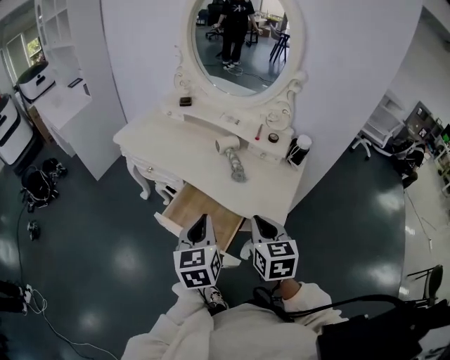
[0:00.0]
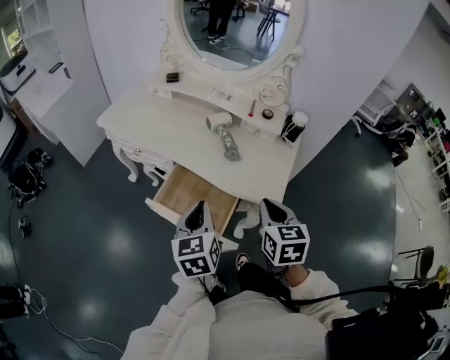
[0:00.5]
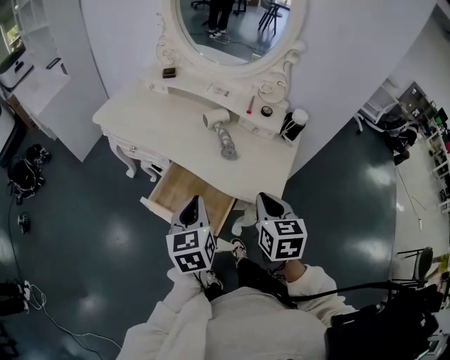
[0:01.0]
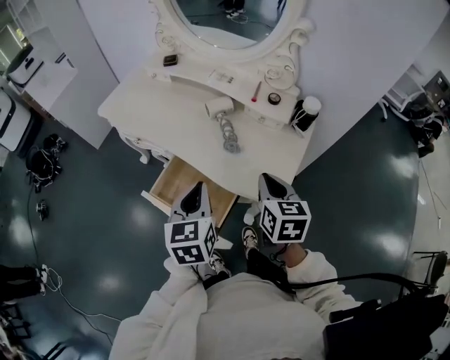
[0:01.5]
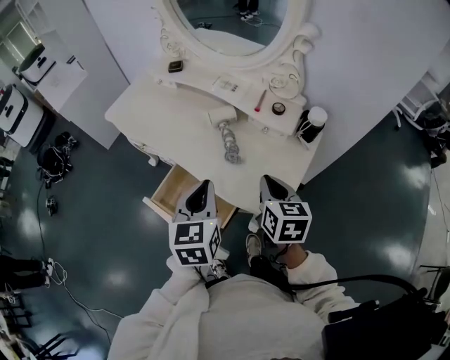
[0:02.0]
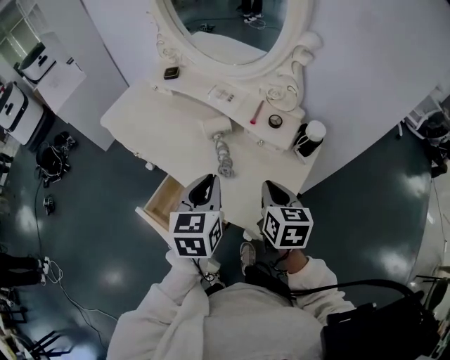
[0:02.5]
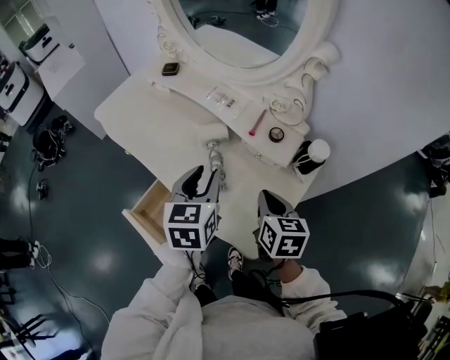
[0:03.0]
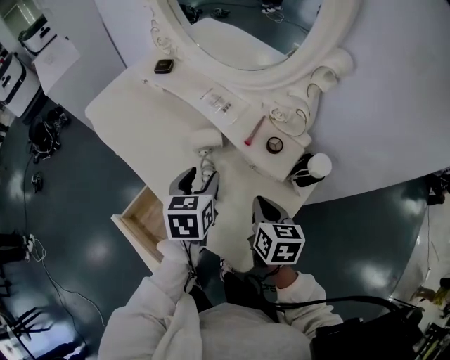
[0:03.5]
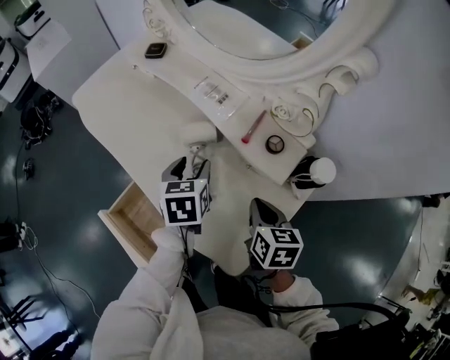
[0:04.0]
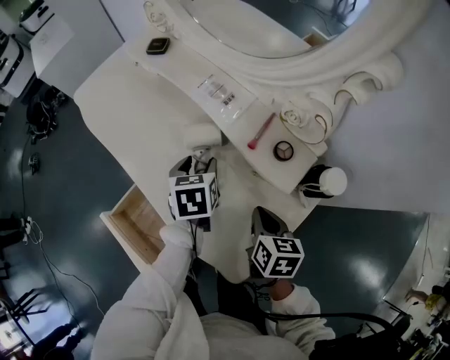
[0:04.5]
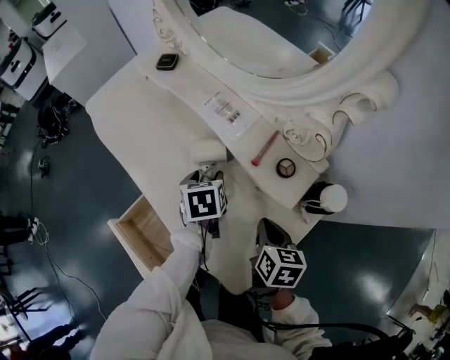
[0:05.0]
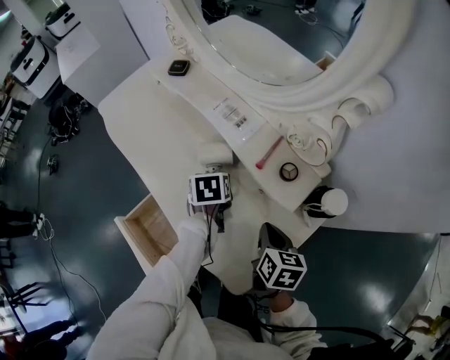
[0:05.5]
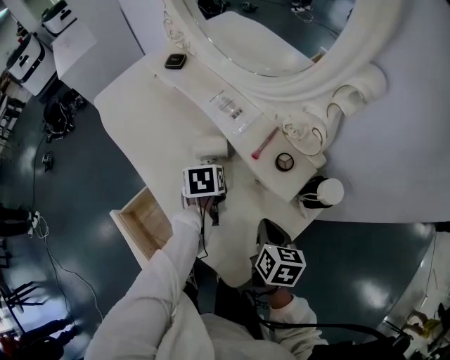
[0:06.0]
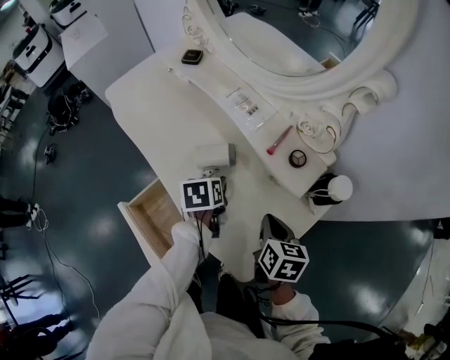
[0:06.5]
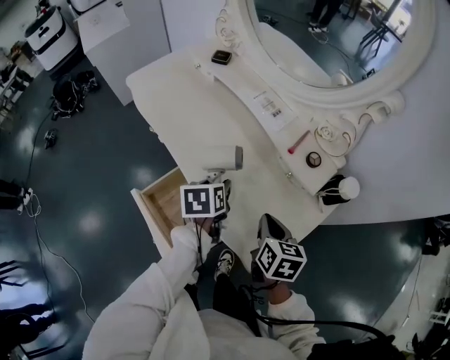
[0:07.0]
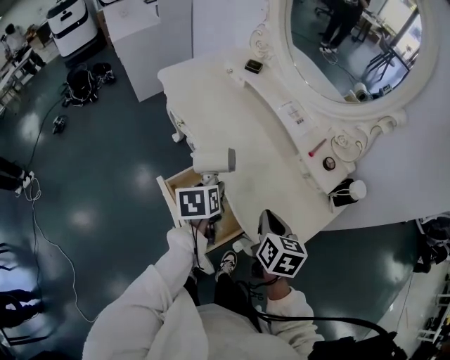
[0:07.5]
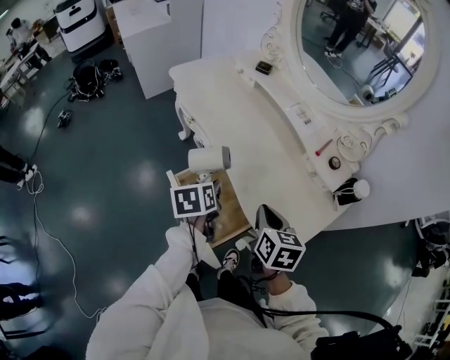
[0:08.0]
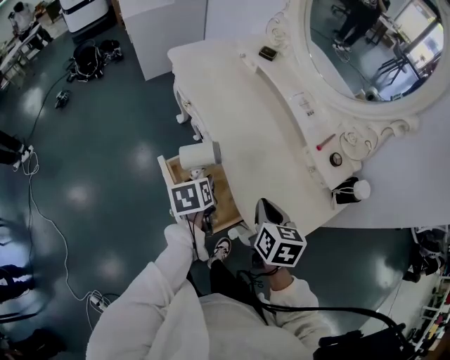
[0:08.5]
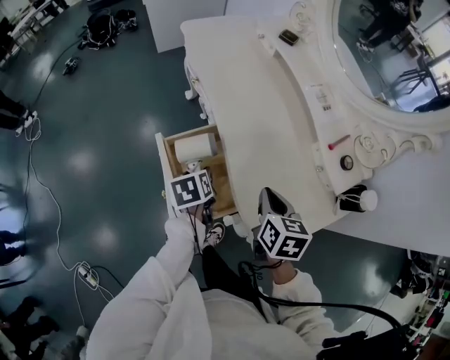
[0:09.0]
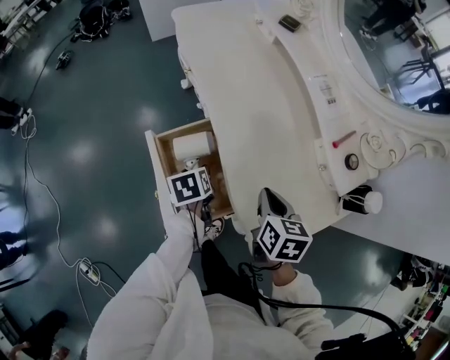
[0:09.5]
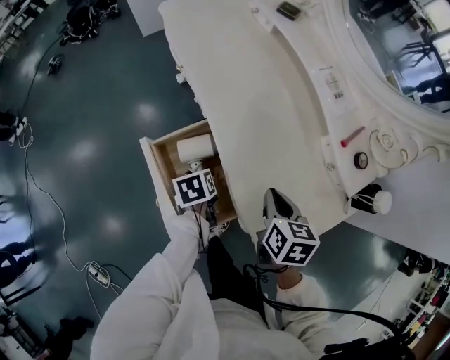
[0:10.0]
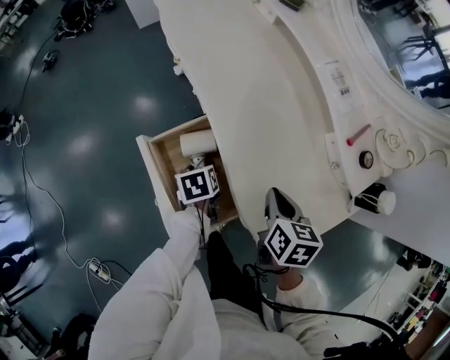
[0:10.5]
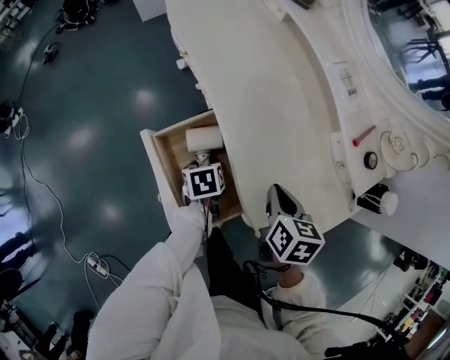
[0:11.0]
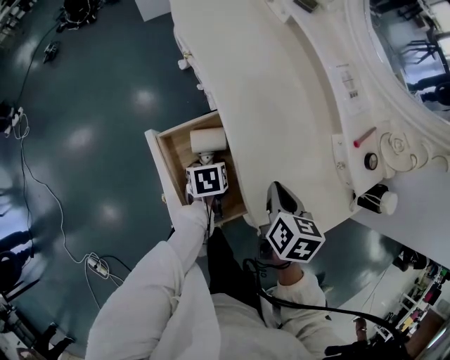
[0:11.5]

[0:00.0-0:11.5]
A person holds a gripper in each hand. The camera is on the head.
0:00.0 to 0:02.0: Both grippers travel together forward and to the right, approximately 15 cm.
0:02.0 to 0:04.0: The left gripper shifts approximately 25 cm forward and downward, swivels roughly 20 degrees, and opens. Meanwhile the right gripper travels forward, downward and to the right by about 20 cm.
0:04.0 to 0:06.0: The left gripper travels downward by roughly 5 cm.
0:06.0 to 0:07.5: The left gripper travels backward, to the left and upward by roughly 25 cm, while the right gripper heads to the left, backward and upward, covering roughly 20 cm.
0:07.5 to 0:09.5: The left gripper goes about 15 cm downward, and changes its angle by roughly 30 degrees; the right gripper travels downward by approximately 5 cm.
0:09.5 to 0:11.5: The left gripper shifts some 5 cm downward.

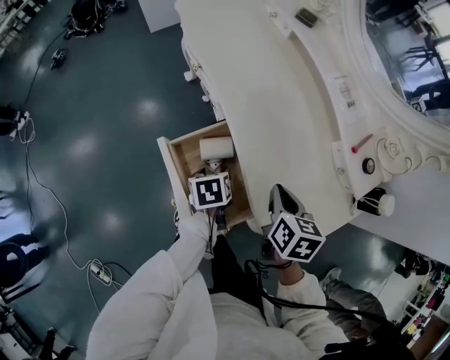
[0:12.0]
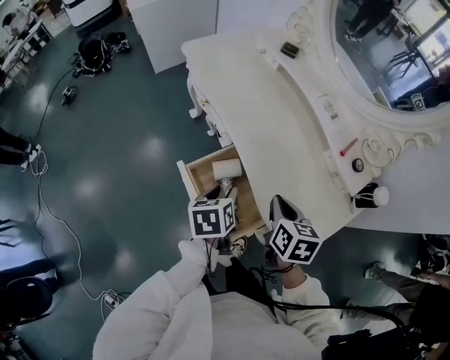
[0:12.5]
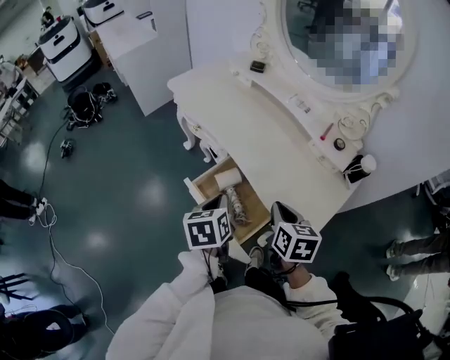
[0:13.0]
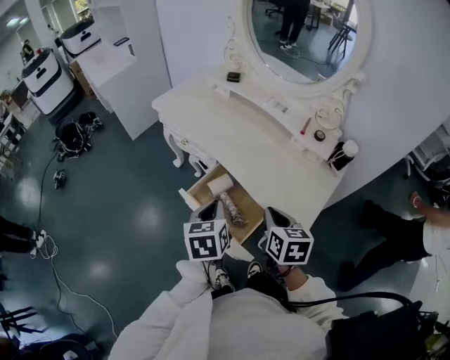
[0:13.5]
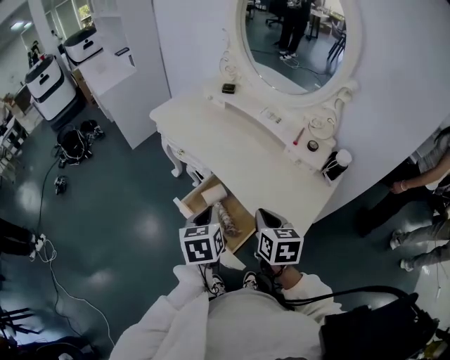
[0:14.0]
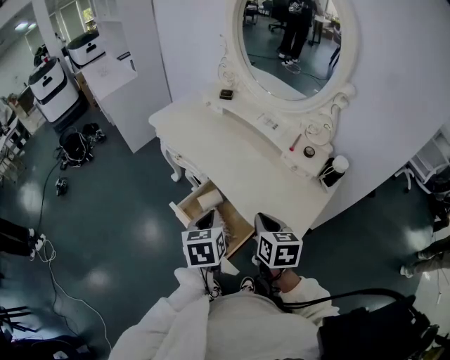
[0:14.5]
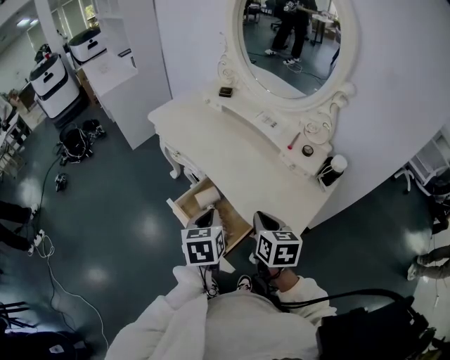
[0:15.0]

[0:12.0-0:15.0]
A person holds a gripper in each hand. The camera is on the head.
0:12.0 to 0:13.5: The right gripper travels backward and upward by some 15 cm; the left gripper heads upward, covering approximately 25 cm, rotates roughly 40 degrees, and closes up.
0:13.5 to 0:15.0: The left gripper is displaced to the right by some 5 cm.

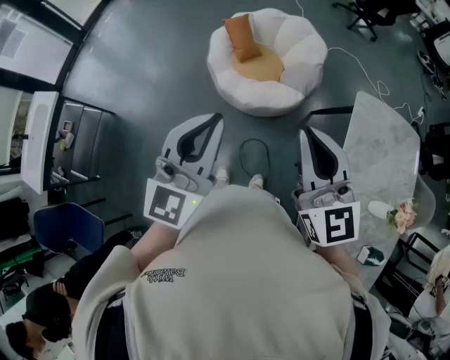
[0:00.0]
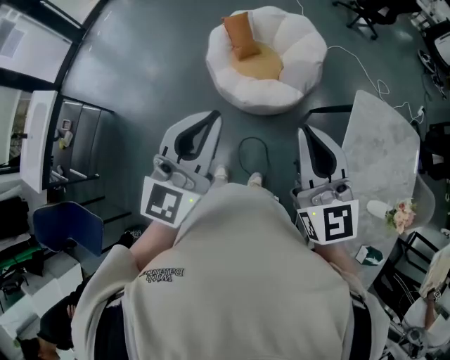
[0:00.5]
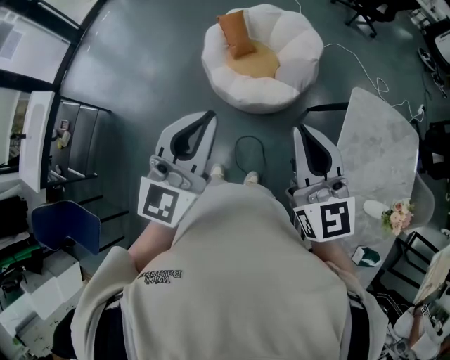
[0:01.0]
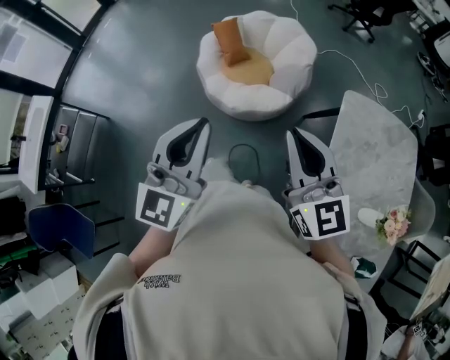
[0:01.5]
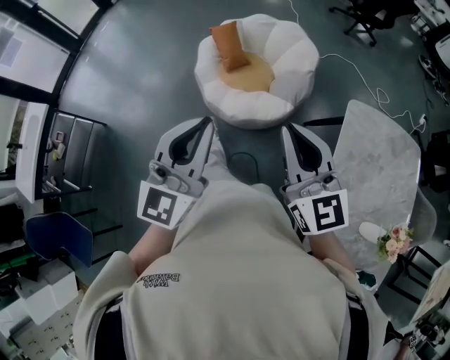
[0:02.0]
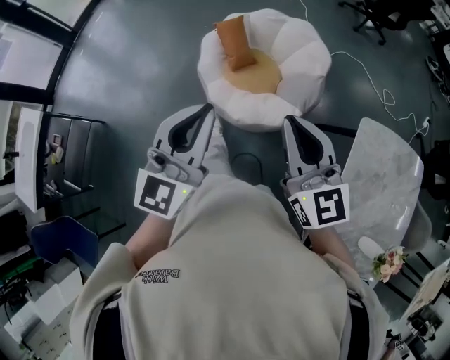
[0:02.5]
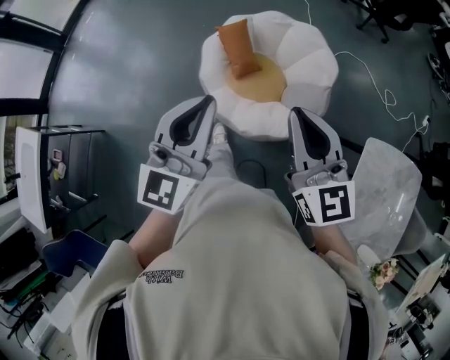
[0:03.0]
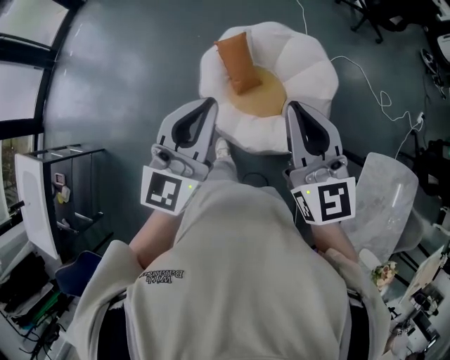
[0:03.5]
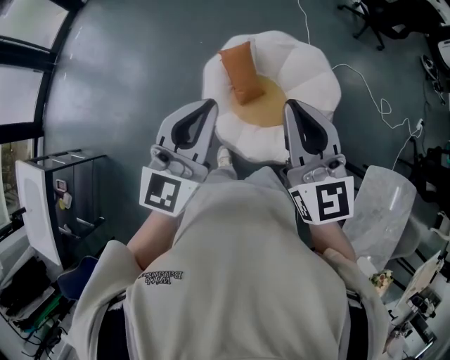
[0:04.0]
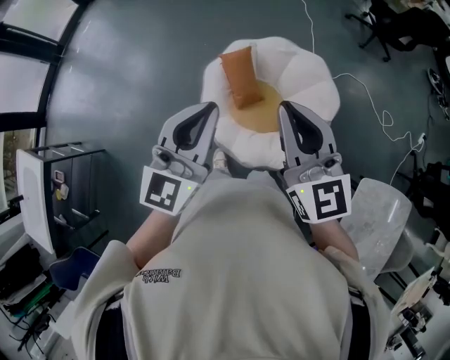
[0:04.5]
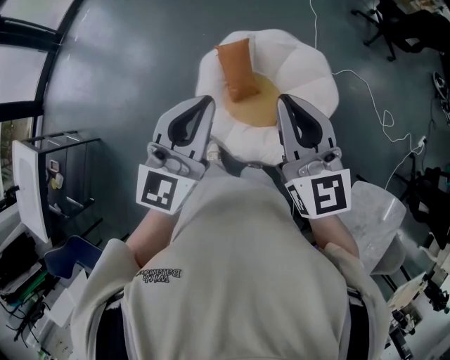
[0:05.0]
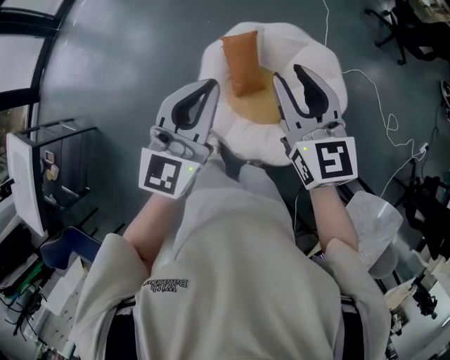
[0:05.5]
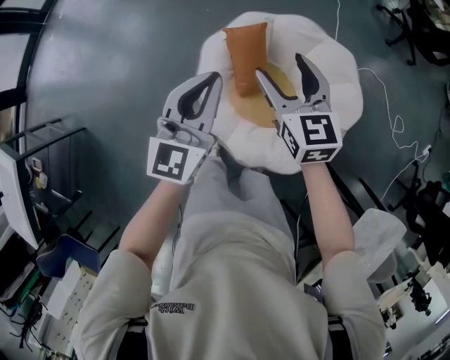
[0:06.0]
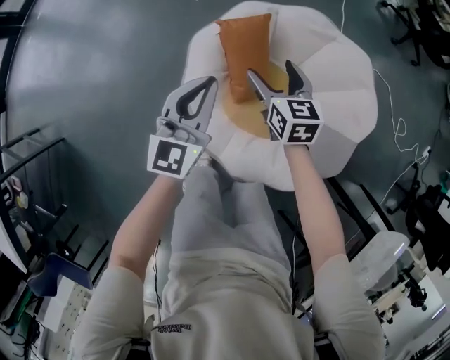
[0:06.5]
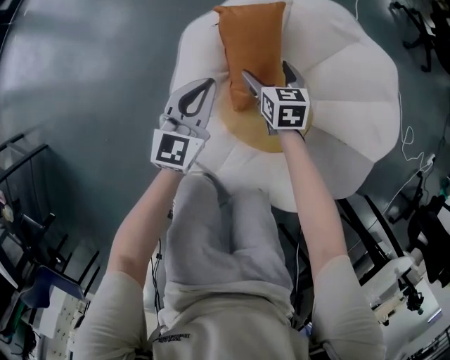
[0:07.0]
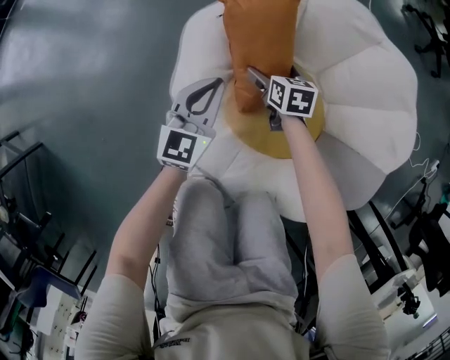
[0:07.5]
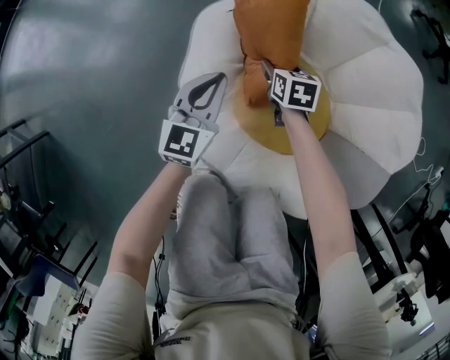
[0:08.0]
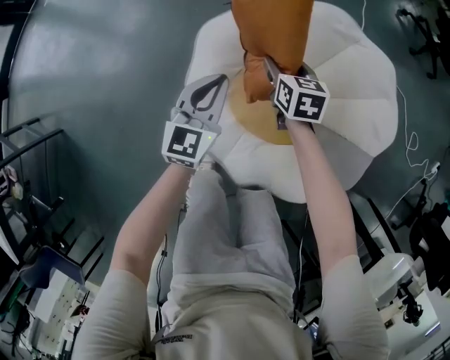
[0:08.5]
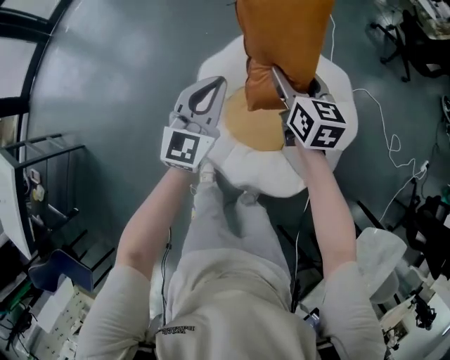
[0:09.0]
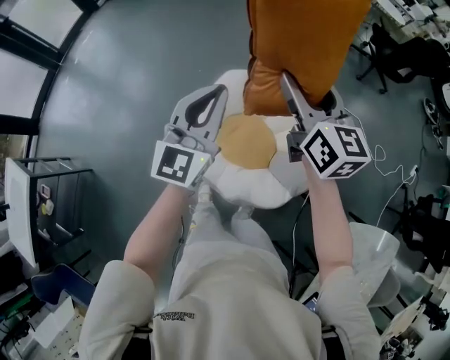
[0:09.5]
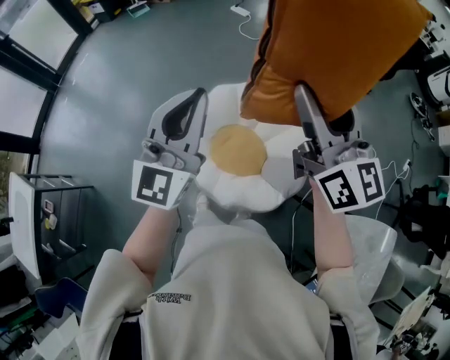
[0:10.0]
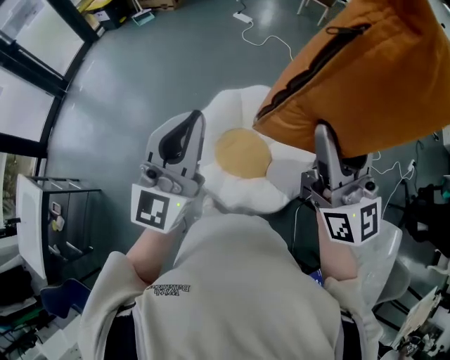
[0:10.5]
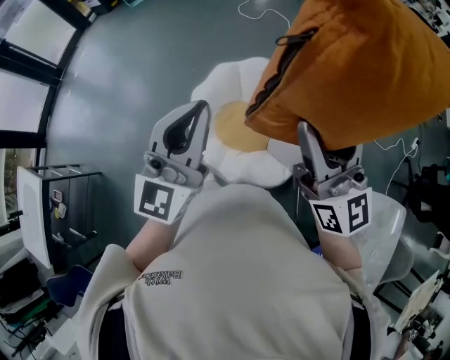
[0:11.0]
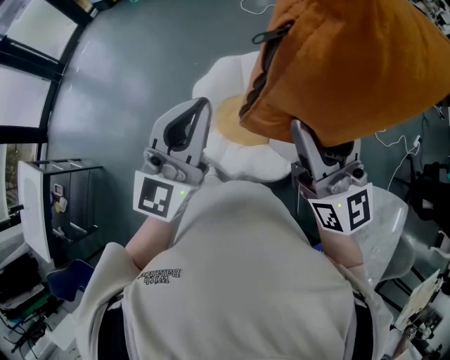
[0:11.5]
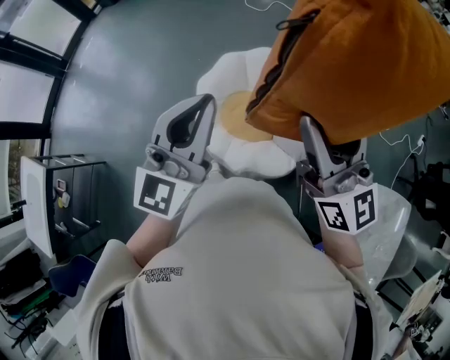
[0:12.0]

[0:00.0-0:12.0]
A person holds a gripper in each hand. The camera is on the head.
0:00.0 to 0:02.0: Both grippers move to the right, forward and downward, roughly 15 cm.
0:02.0 to 0:04.0: Both grippers are carried forward and to the left, about 50 cm.
0:04.0 to 0:06.0: Both grippers move downward and forward, about 35 cm. The right gripper changes its angle by some 20 degrees, and opens.
0:06.0 to 0:08.0: Both grippers travel together downward, some 50 cm. The right gripper tilts its fingers roughly 30 degrees downward.
0:08.0 to 0:10.0: The grippers both shift upward by roughly 90 cm. The left gripper tips its fingers upward by some 30 degrees. The right gripper tips its fingers upward by some 60 degrees.
0:10.0 to 0:12.0: Both grippers travel together backward, approximately 15 cm.
